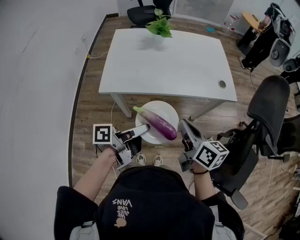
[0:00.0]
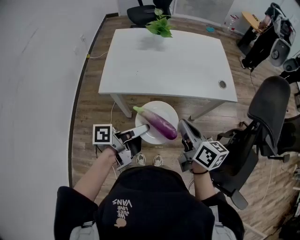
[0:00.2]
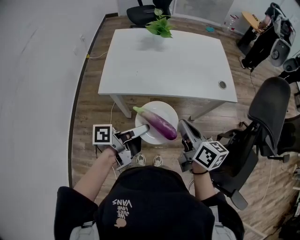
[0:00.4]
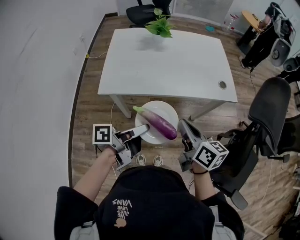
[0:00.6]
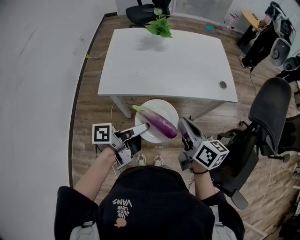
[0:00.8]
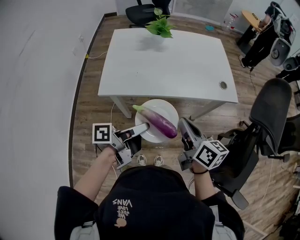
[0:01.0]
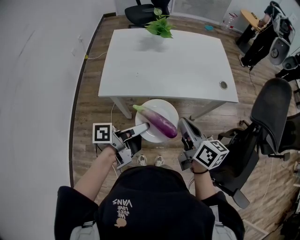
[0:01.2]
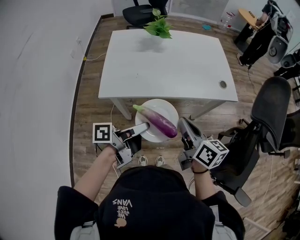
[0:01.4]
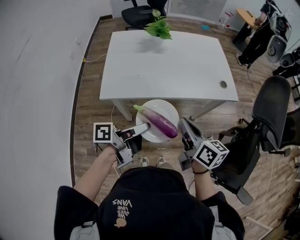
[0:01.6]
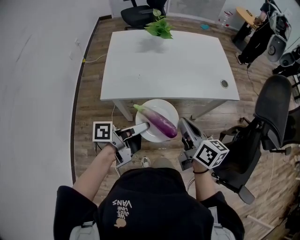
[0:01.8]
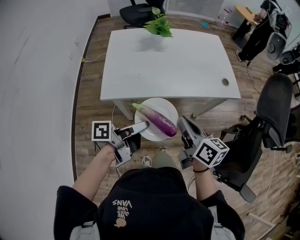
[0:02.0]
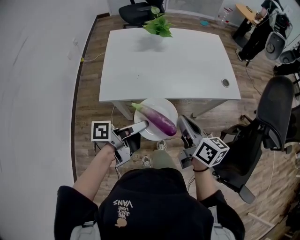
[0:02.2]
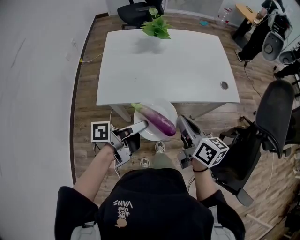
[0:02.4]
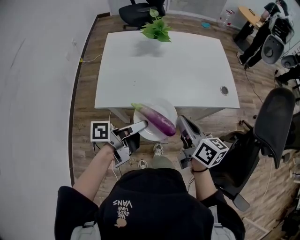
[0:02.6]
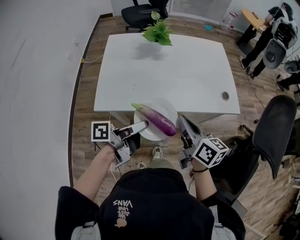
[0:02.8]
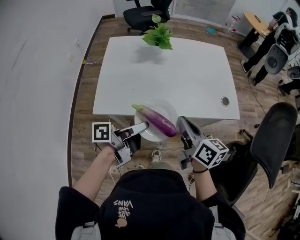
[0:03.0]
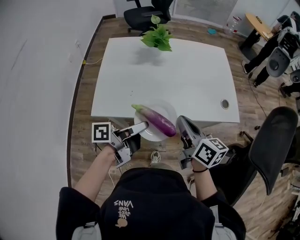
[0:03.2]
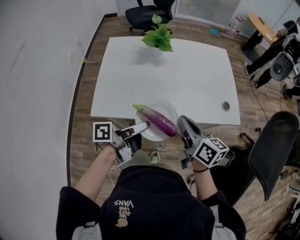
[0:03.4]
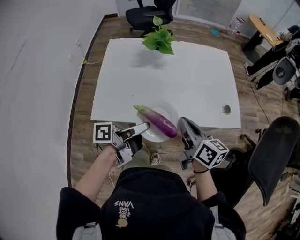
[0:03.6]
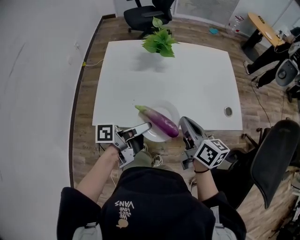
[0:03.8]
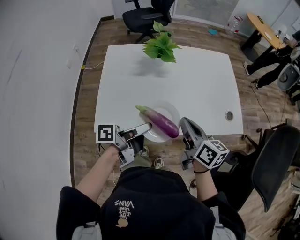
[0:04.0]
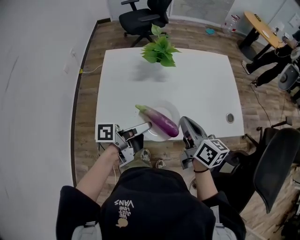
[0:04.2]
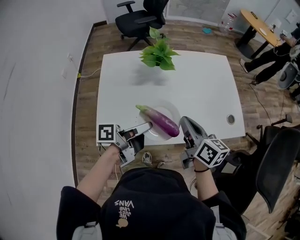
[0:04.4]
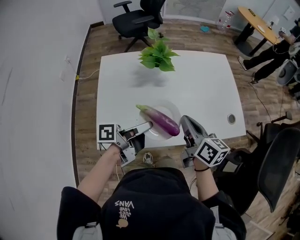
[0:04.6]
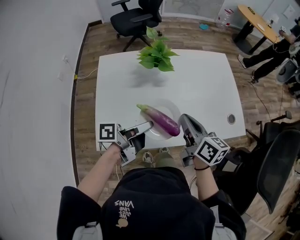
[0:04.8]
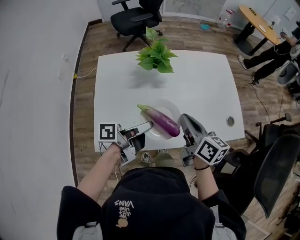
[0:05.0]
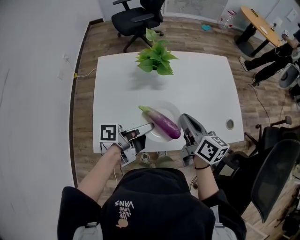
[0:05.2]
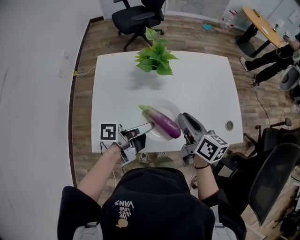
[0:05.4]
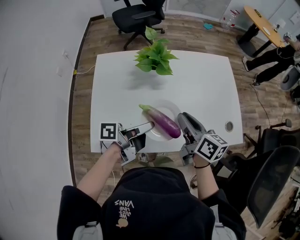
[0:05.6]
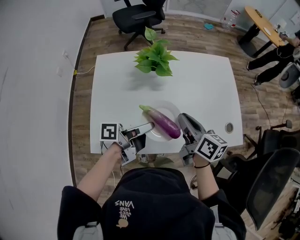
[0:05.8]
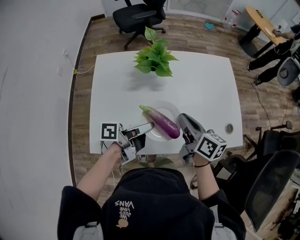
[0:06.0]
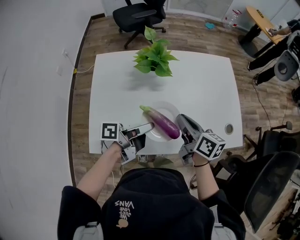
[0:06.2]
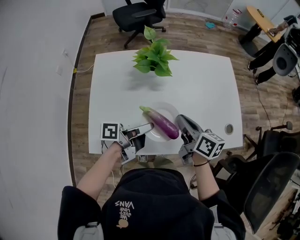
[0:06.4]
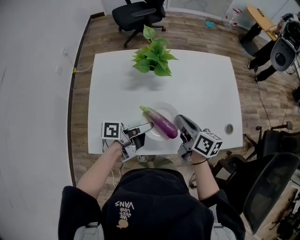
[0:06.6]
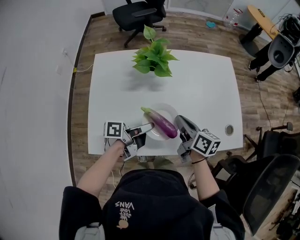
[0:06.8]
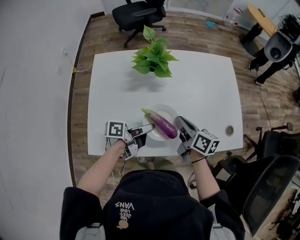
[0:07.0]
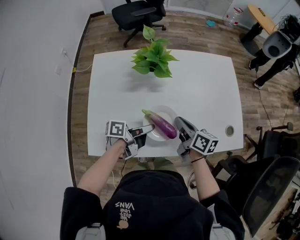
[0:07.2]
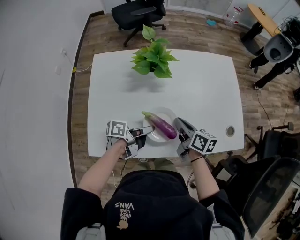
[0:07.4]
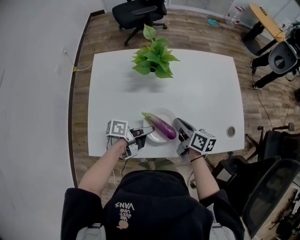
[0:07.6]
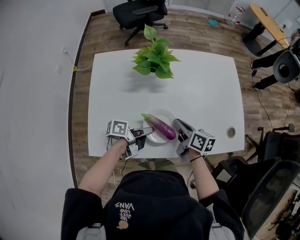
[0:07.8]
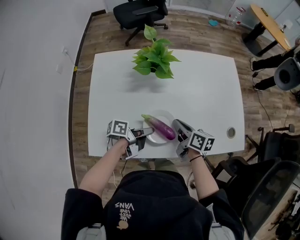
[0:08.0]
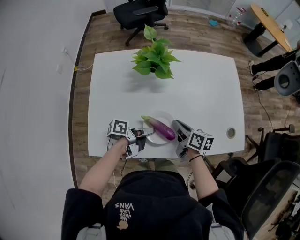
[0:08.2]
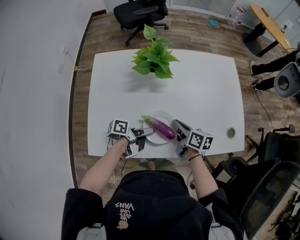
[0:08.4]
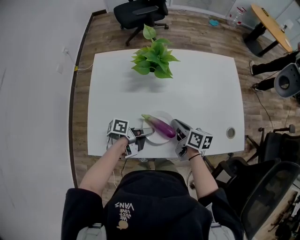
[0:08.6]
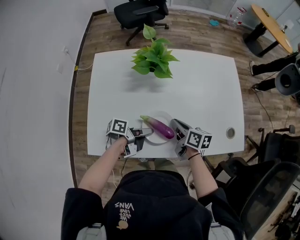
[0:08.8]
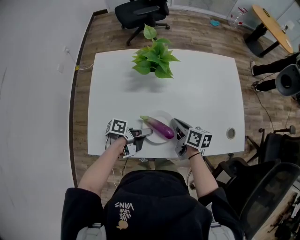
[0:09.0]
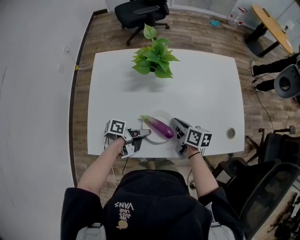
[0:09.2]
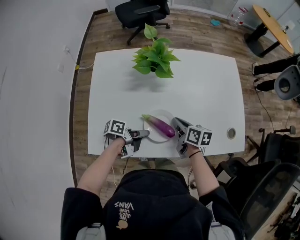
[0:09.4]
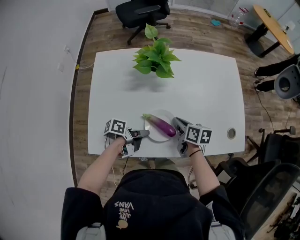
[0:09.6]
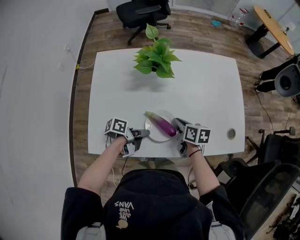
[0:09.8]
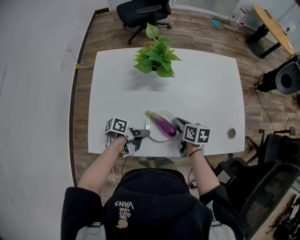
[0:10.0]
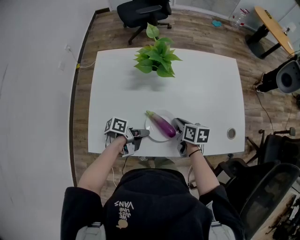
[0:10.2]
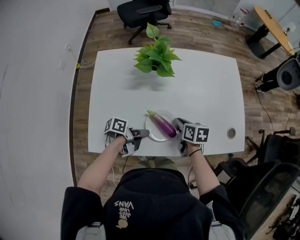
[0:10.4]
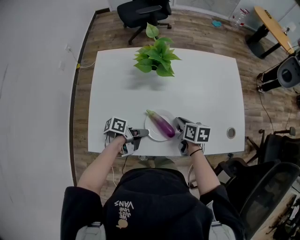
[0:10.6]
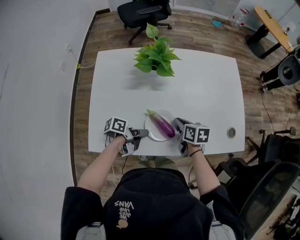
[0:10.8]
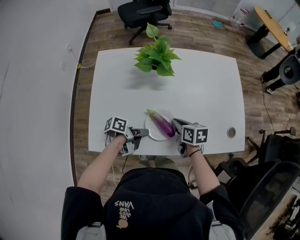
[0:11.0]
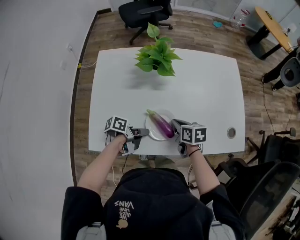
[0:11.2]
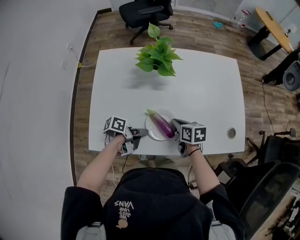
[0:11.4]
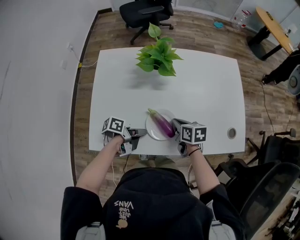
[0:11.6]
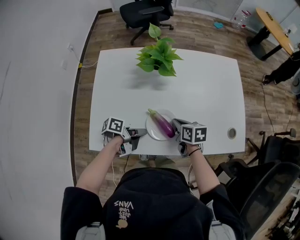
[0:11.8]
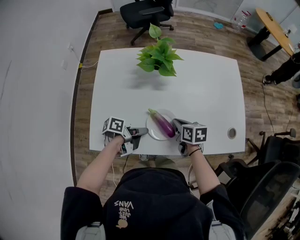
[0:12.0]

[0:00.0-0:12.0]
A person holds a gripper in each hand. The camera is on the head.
0:01.6 to 0:03.0: The right gripper changes place by about 10 cm.
0:03.0 to 0:04.4: The right gripper moves approximately 15 cm.
0:04.4 to 0:06.0: The right gripper moves some 10 cm.
0:06.0 to 0:07.6: The right gripper shifts approximately 10 cm downward.

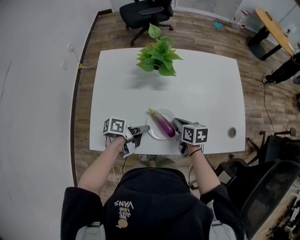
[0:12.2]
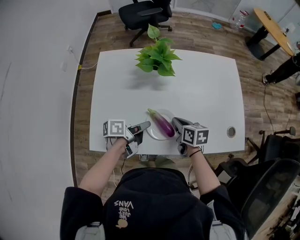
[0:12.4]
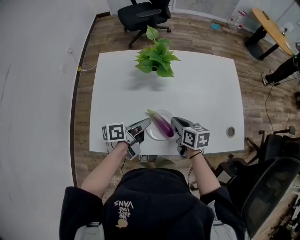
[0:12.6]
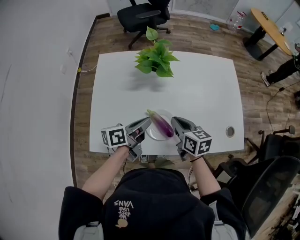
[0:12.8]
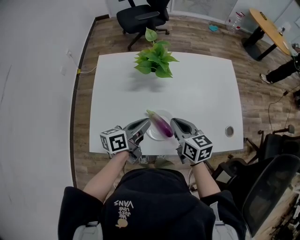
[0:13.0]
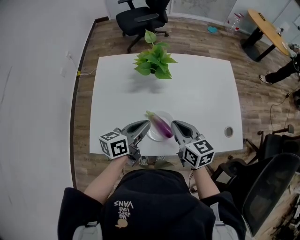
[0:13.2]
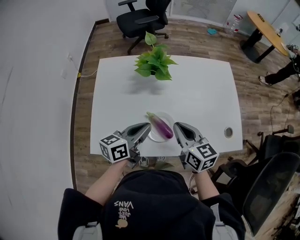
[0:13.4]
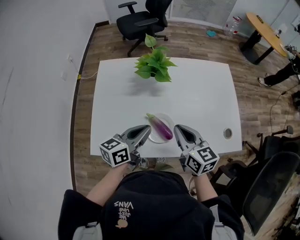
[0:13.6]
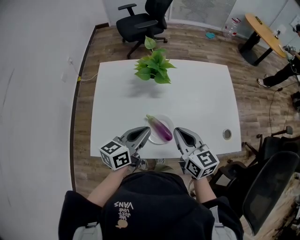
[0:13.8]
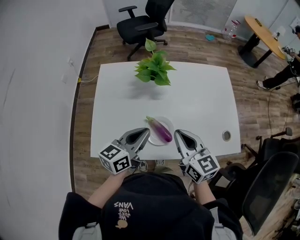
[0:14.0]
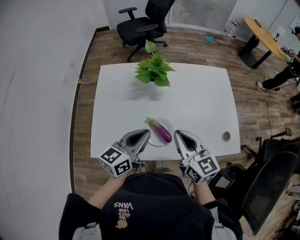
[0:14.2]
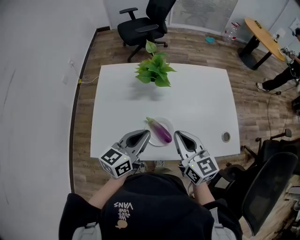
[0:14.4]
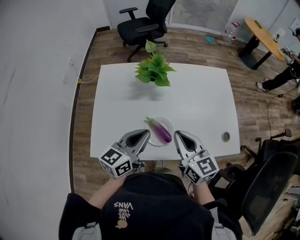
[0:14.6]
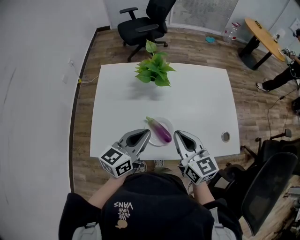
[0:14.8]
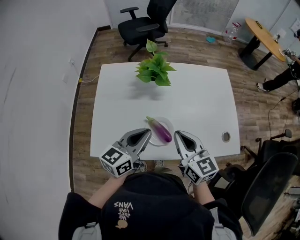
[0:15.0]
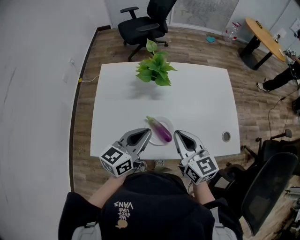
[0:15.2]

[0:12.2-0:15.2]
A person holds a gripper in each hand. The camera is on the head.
0:12.2 to 0:13.8: The right gripper heads upward, covering approximately 20 cm, and swivels approximately 30 degrees.

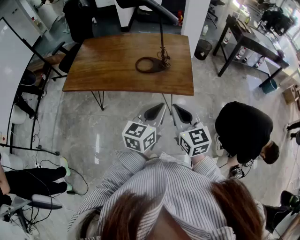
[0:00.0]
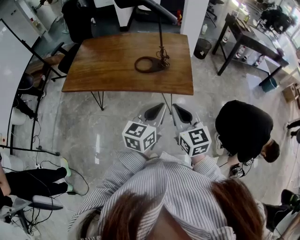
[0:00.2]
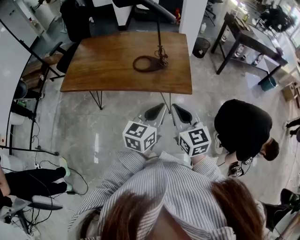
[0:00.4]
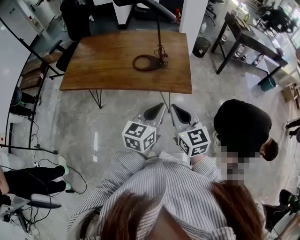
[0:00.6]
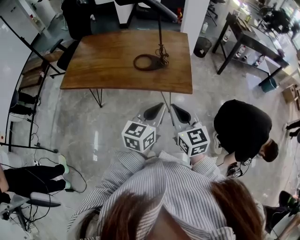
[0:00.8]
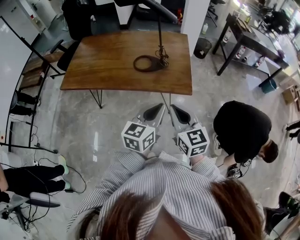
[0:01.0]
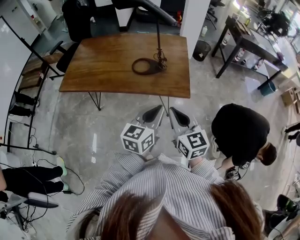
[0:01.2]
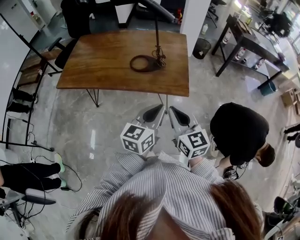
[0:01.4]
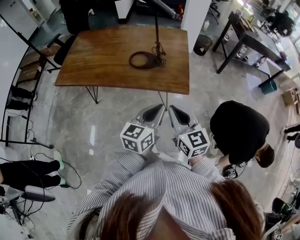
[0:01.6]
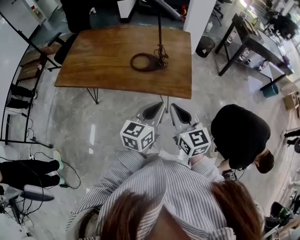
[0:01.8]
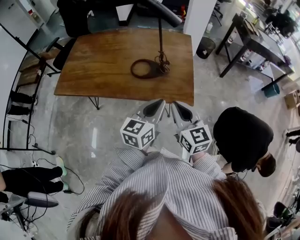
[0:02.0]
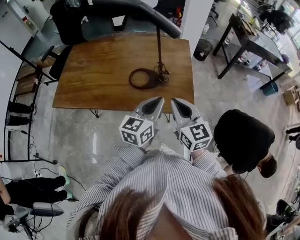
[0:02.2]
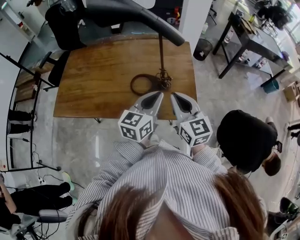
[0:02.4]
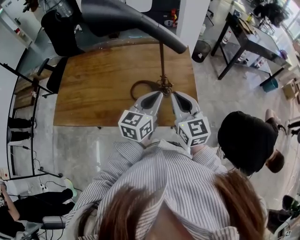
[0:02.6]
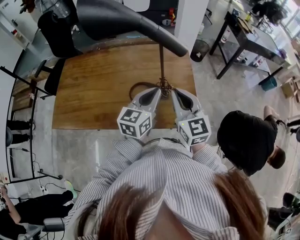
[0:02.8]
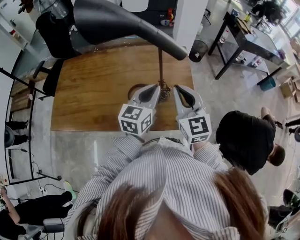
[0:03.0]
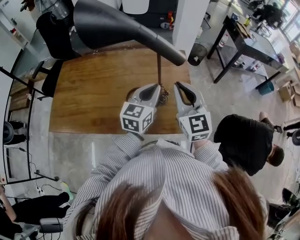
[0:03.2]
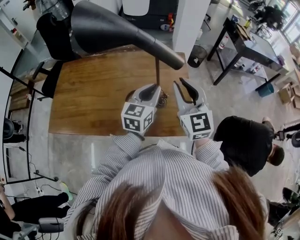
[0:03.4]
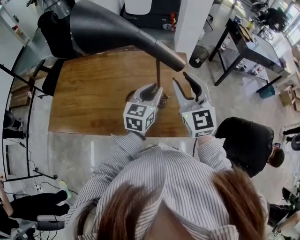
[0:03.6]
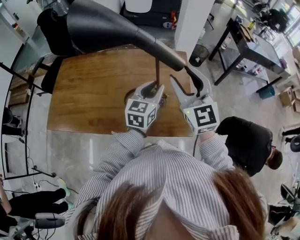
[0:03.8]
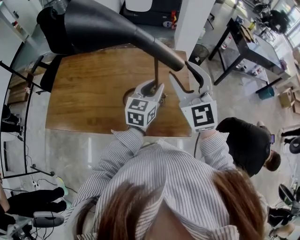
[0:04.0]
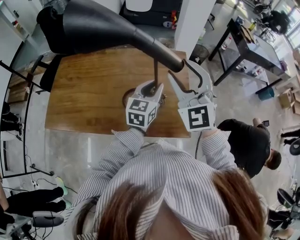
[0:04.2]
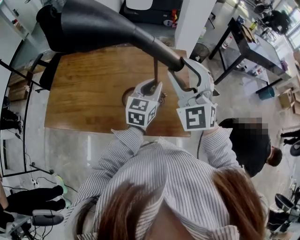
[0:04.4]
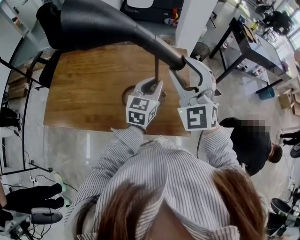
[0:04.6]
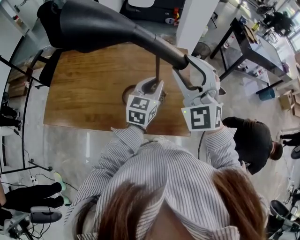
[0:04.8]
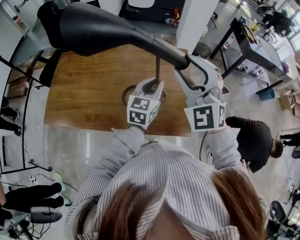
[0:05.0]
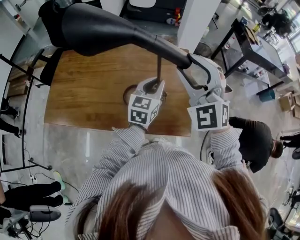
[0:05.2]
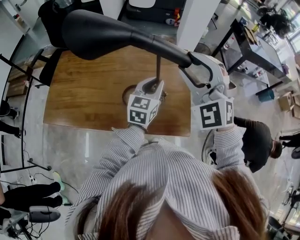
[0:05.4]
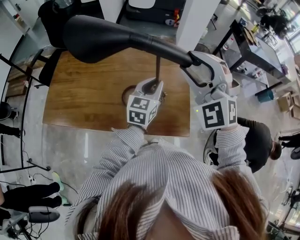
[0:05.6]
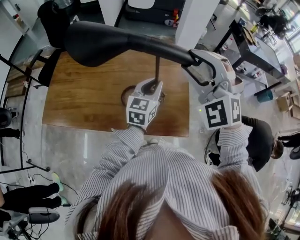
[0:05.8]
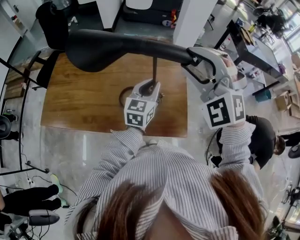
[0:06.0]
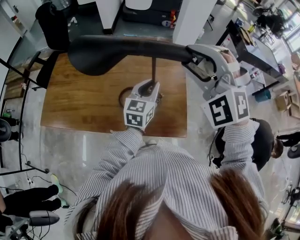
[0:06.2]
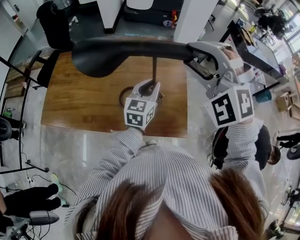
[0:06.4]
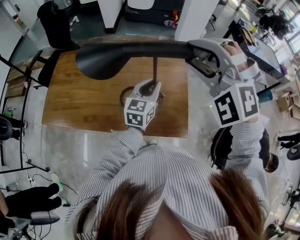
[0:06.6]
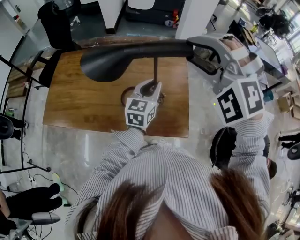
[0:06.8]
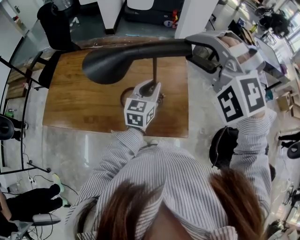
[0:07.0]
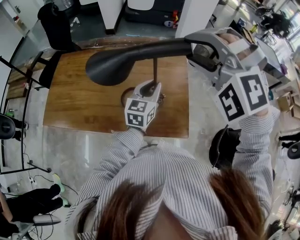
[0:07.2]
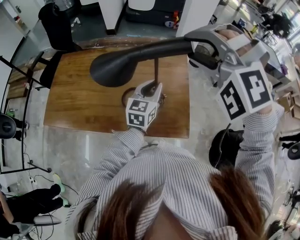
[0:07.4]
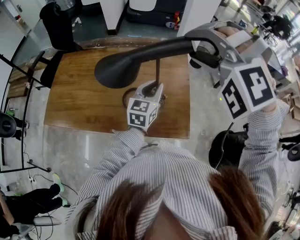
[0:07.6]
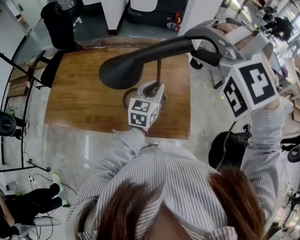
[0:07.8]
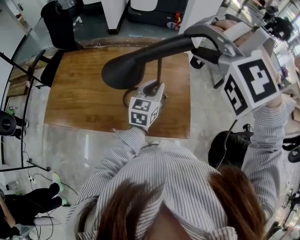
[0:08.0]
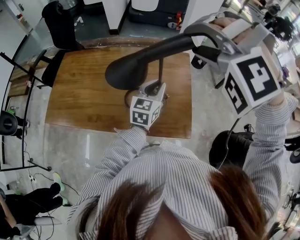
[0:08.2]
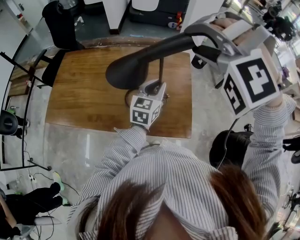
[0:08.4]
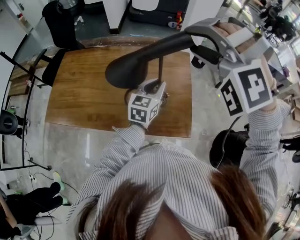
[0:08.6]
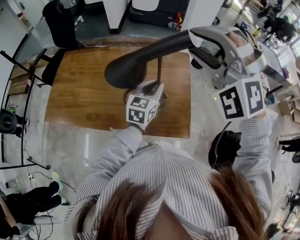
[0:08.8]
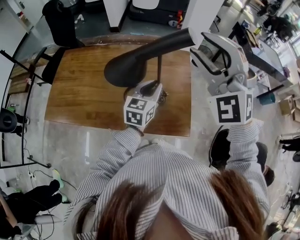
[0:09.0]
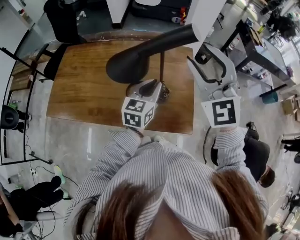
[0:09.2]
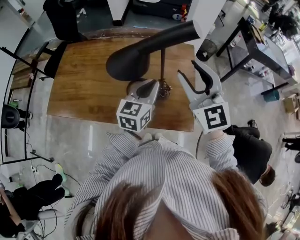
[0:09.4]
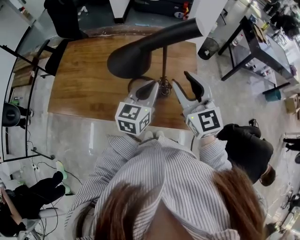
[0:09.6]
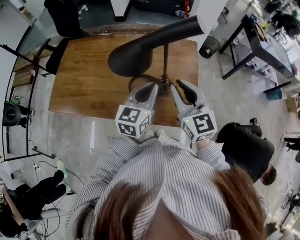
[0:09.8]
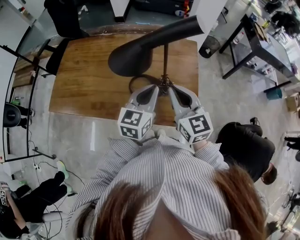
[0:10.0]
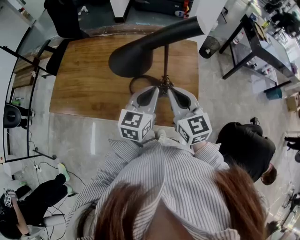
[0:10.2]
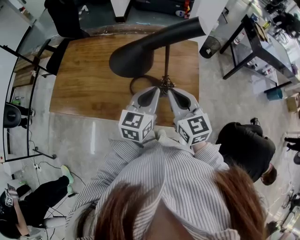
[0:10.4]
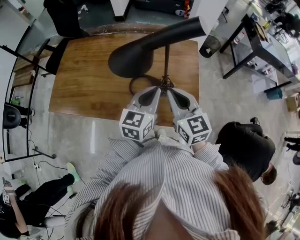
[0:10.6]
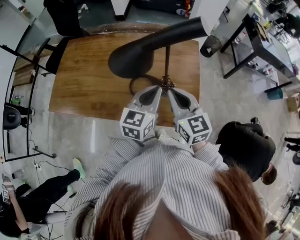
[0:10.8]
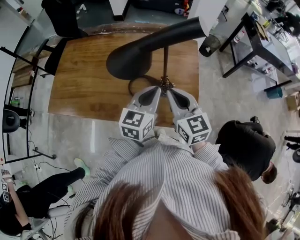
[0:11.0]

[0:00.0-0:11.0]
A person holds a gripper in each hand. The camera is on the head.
0:00.0 to 0:01.6: The right gripper moves about 5 cm. Meanwhile the left gripper changes place by some 5 cm.
0:01.6 to 0:03.2: Both grippers move forward, roughly 30 cm. The right gripper changes its angle by approximately 20 degrees.
0:03.2 to 0:04.8: The right gripper heads upward, covering roughly 10 cm, changes its angle by roughly 40 degrees, and opens up. The left gripper moves about 5 cm.
0:04.8 to 0:06.2: The right gripper rotates about 30 degrees.
0:06.2 to 0:07.8: The right gripper changes its angle by roughly 30 degrees.
0:07.8 to 0:09.4: The left gripper ends up about 5 cm from where it was; the right gripper goes some 10 cm downward, and rotates around the line of its fingers by approximately 80 degrees, clockwise from behind.
0:09.4 to 0:11.0: The right gripper heads downward, covering roughly 15 cm, turns by roughly 30 degrees, and closes its fingers.
